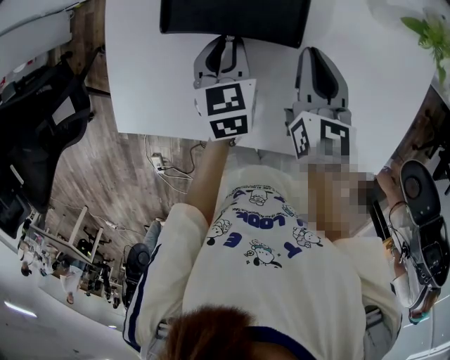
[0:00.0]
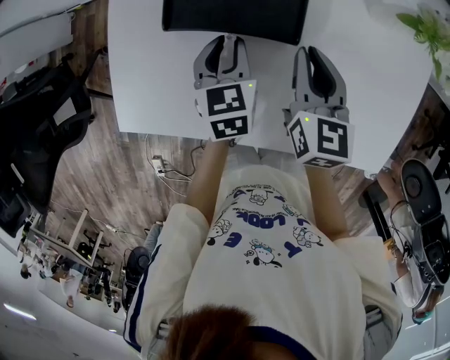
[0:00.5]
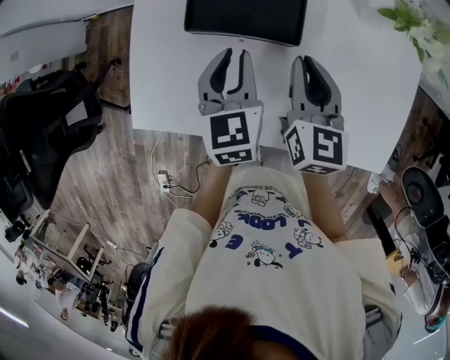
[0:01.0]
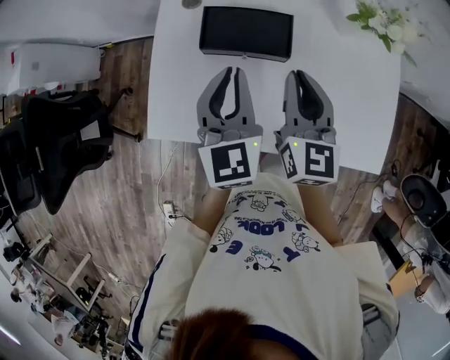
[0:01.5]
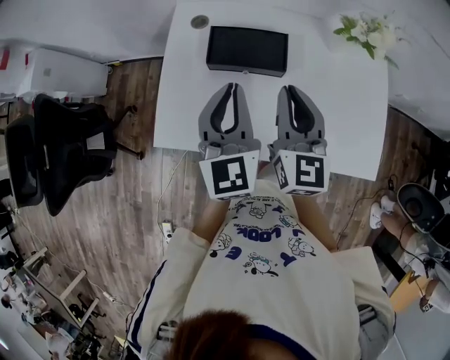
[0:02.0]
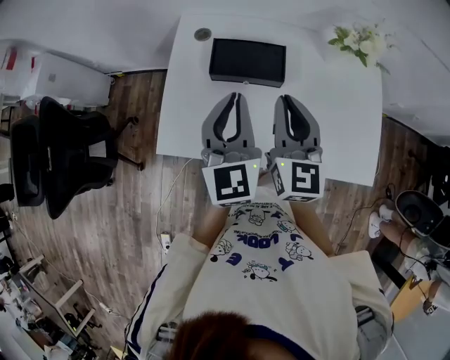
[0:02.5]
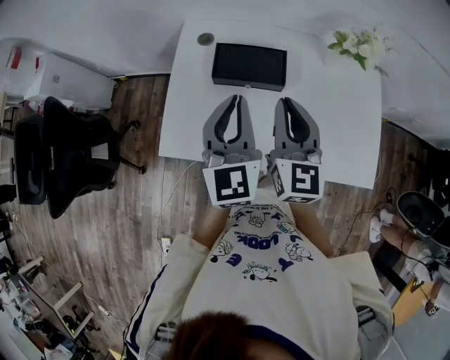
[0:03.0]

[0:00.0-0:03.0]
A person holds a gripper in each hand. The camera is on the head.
0.0 to 1.5 s: The left gripper travels upward by approximately 25 cm, and angles its fingers upward, by roughly 30 degrees. Meanwhile the right gripper goes approximately 20 cm upward, backward and to the left.
1.5 to 3.0 s: The left gripper goes roughly 10 cm upward and backward. The right gripper travels upward by approximately 5 cm.

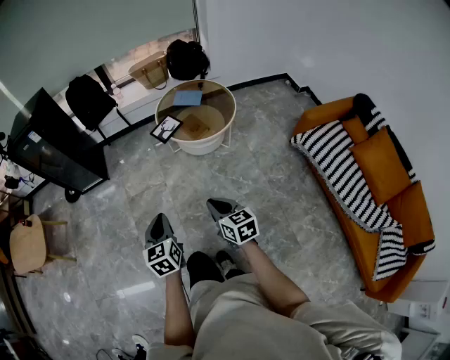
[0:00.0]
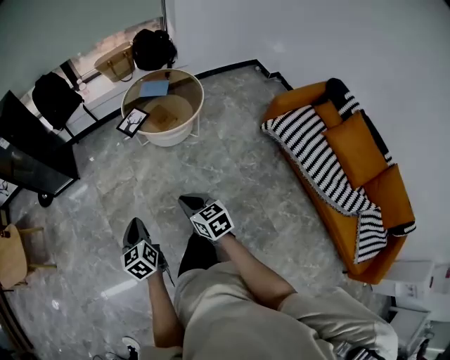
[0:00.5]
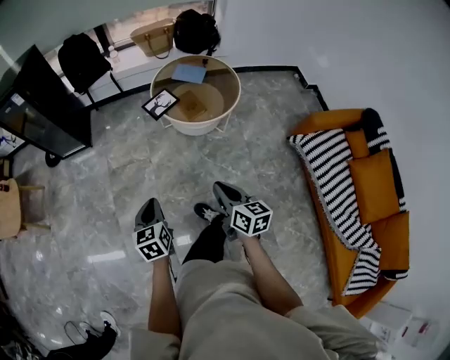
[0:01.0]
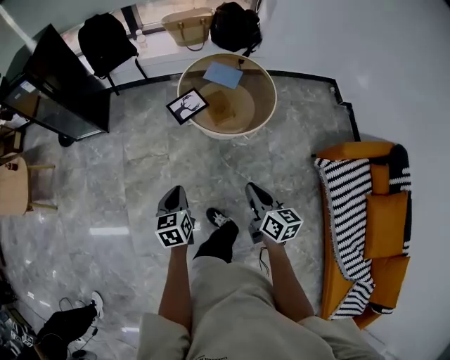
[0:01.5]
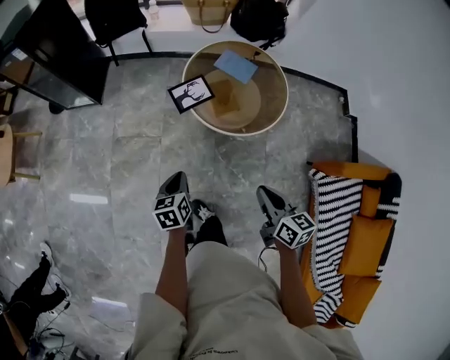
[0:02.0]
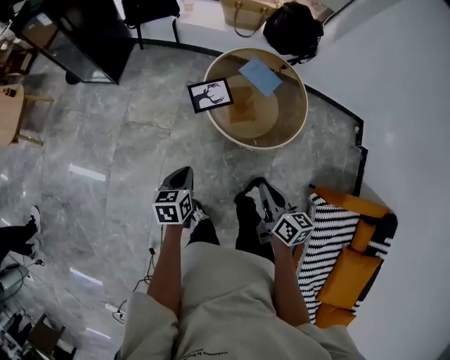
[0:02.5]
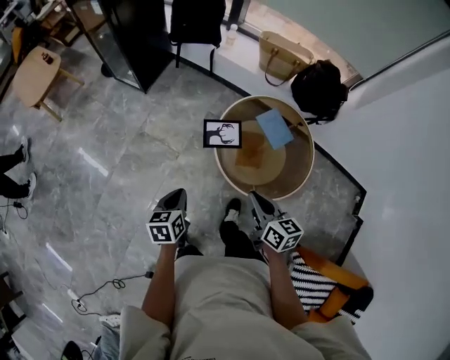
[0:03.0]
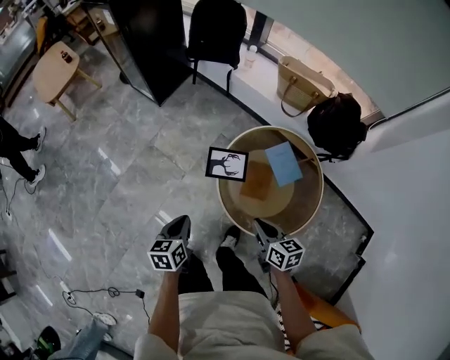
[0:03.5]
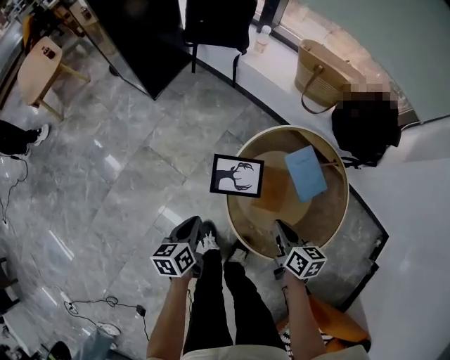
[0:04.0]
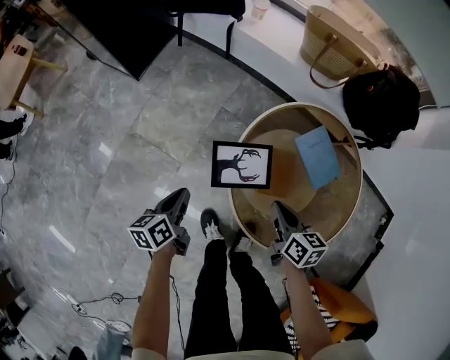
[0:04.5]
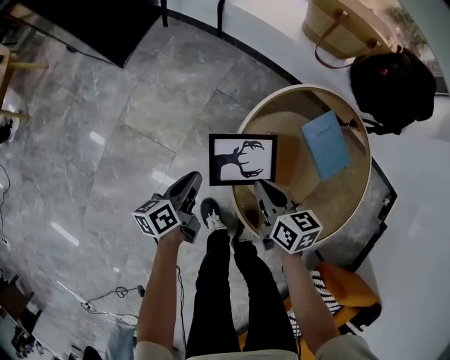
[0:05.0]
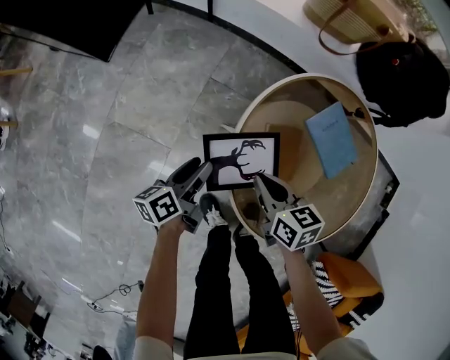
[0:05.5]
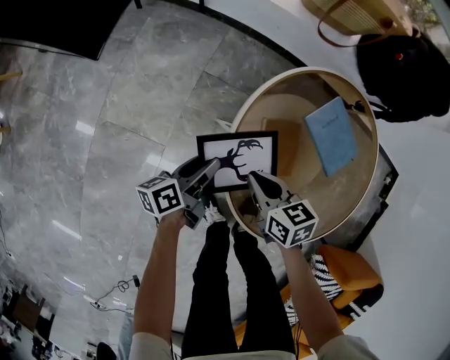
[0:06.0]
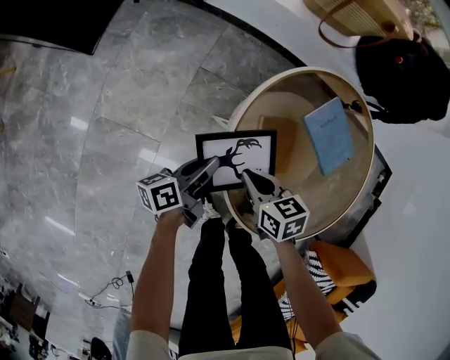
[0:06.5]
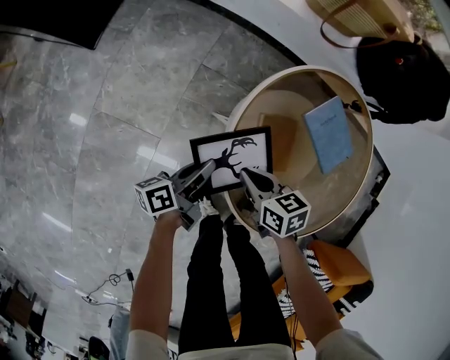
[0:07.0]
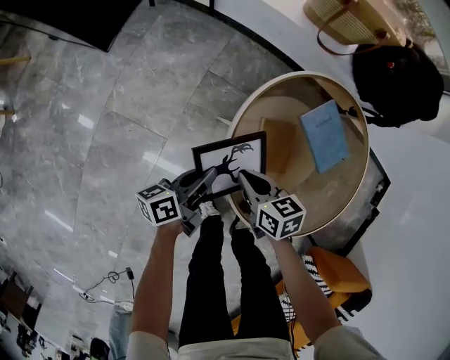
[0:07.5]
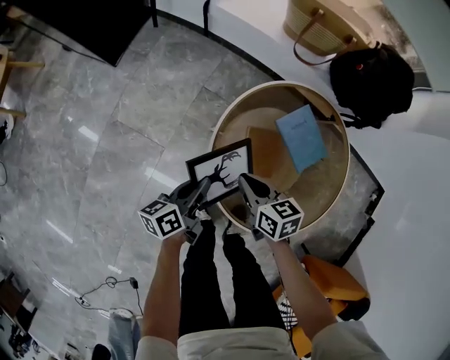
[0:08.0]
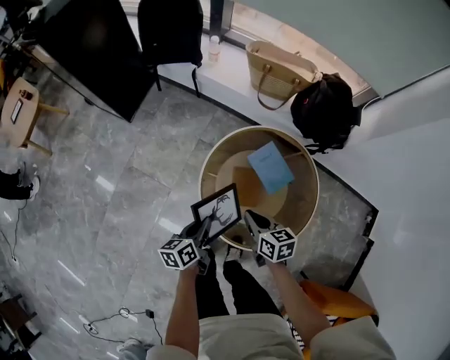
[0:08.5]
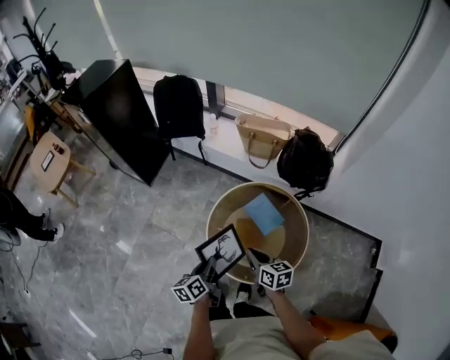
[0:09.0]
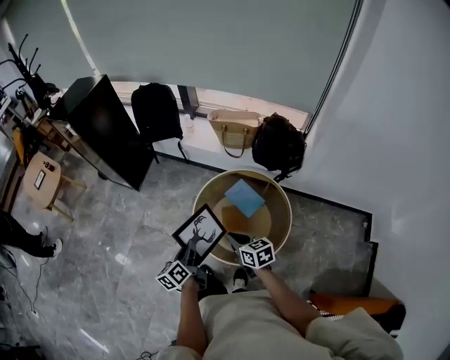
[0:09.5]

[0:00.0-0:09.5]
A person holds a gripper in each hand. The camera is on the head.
0.0 to 2.0 s: The left gripper heads forward and downward, covering roughly 35 cm, and swivels roughly 30 degrees. Meanwhile the right gripper travels forward and to the right by about 35 cm.
2.0 to 4.0 s: The right gripper moves about 50 cm, and changes its angle by about 30 degrees. Meanwhile the left gripper changes place by about 30 cm, and turns by roughly 30 degrees.
4.0 to 5.5 s: The right gripper travels downward, forward and to the left by roughly 25 cm. The left gripper shifts about 25 cm downward and forward, rotates roughly 30 degrees, and opens its fingers.
5.5 to 7.5 s: The left gripper shifts about 5 cm upward, and closes its fingers.
7.5 to 9.5 s: The right gripper heads upward, backward and to the right, covering approximately 50 cm. The left gripper is displaced upward and backward by roughly 50 cm, and changes its angle by roughly 40 degrees.

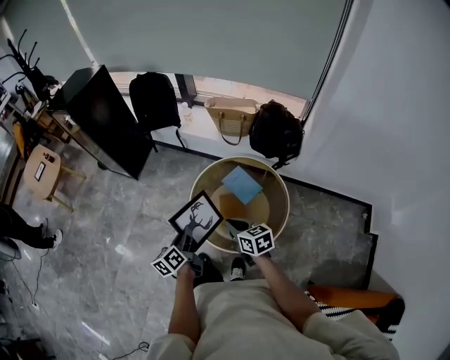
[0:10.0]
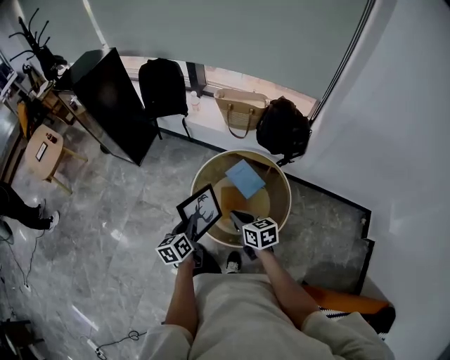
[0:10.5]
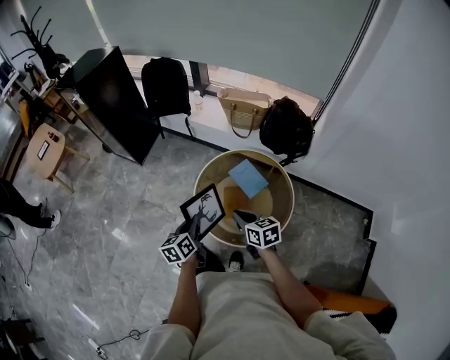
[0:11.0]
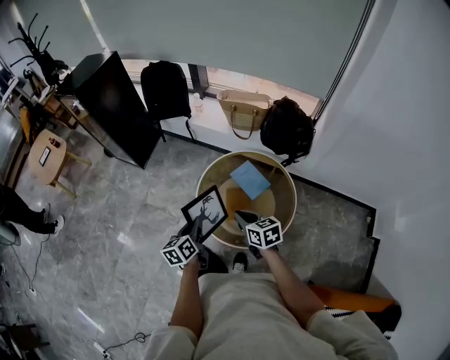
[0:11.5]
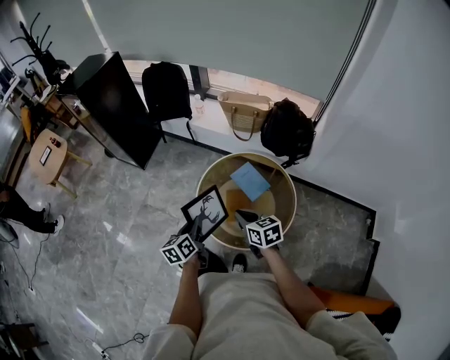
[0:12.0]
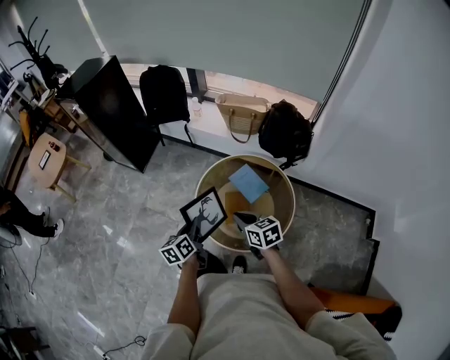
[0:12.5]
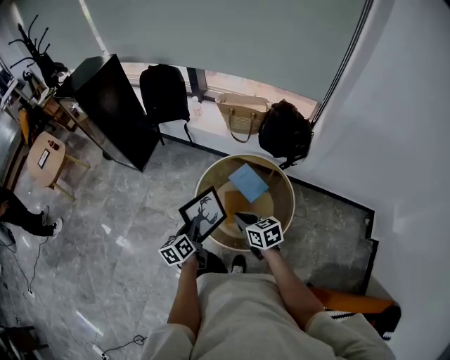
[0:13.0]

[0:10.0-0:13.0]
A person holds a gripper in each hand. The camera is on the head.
10.0 to 11.5 s: The grippers stay close to where they were, moving slightly.
11.5 to 13.0 s: Both grippers stay about where they are.

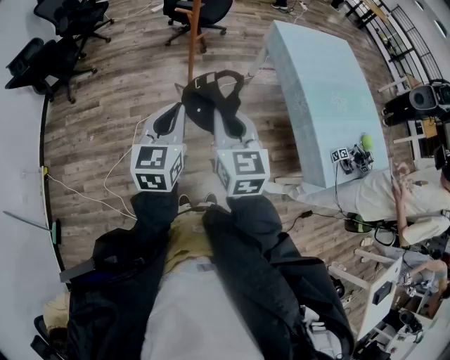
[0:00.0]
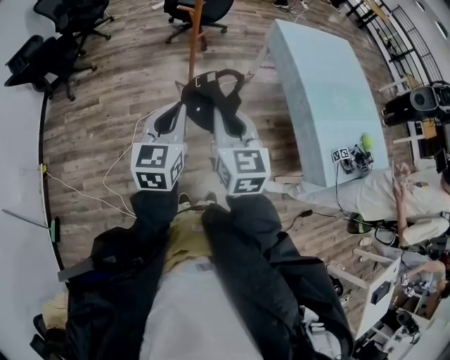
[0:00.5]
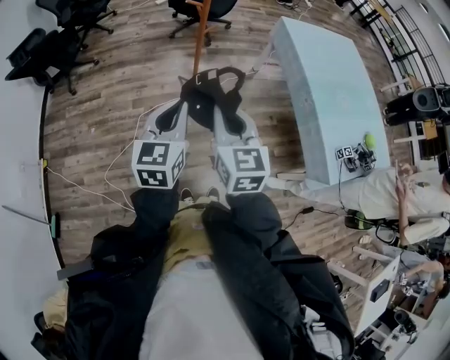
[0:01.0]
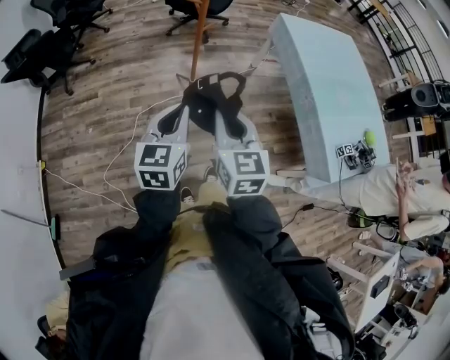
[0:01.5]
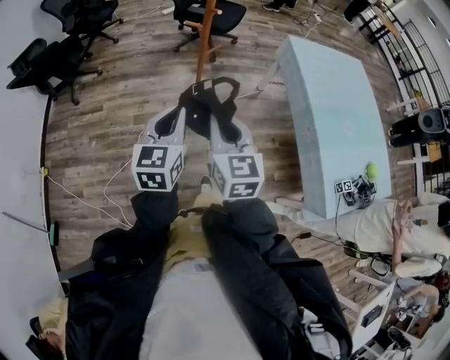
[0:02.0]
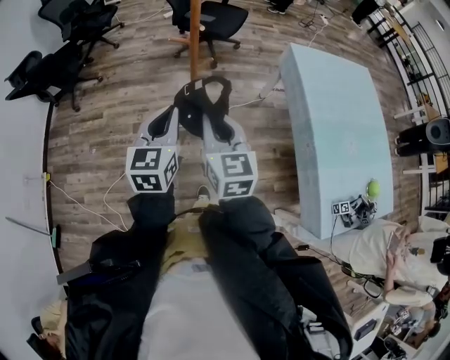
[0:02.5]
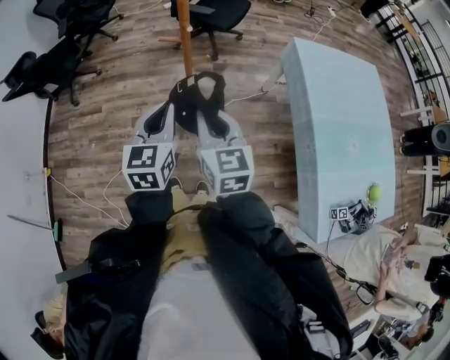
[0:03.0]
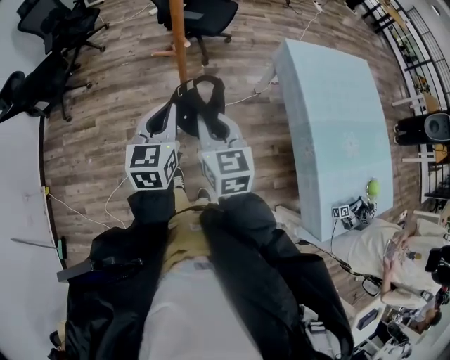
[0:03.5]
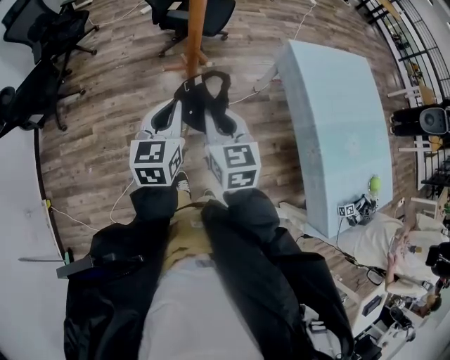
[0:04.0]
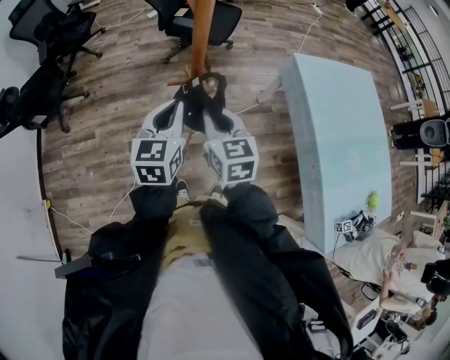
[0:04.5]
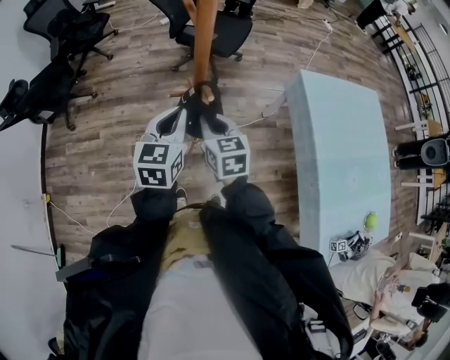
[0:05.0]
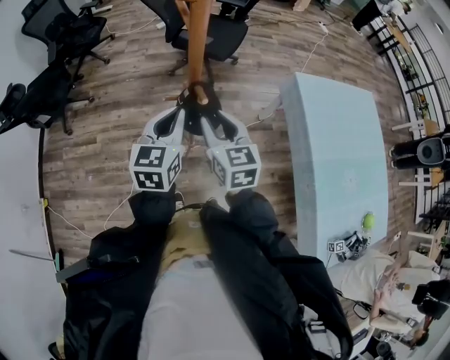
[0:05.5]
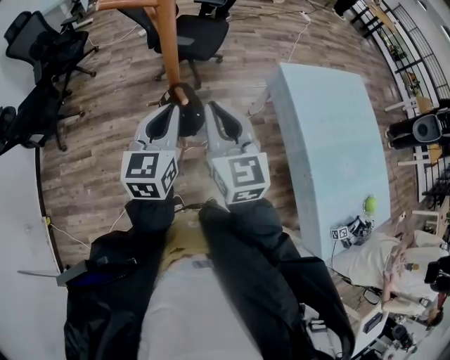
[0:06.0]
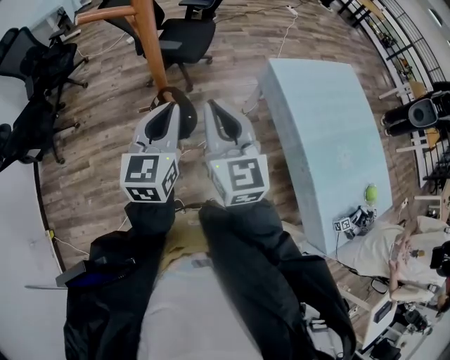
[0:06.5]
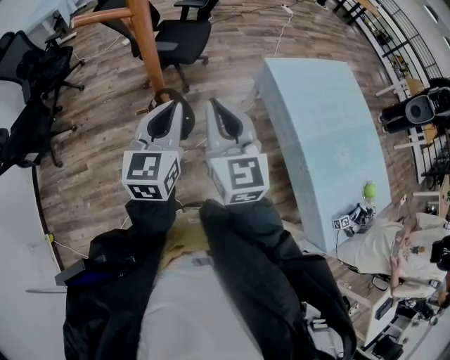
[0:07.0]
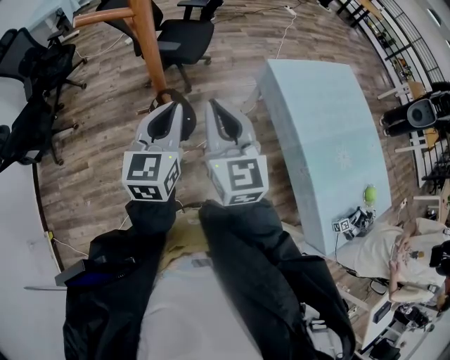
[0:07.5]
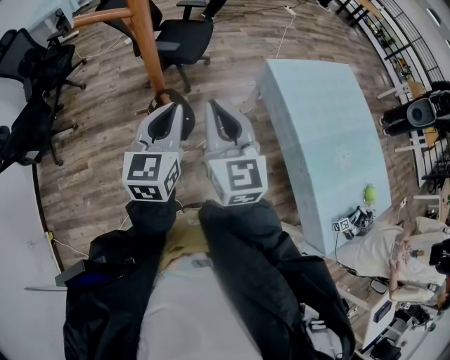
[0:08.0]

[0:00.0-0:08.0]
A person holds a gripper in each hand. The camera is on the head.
0.0 to 2.0 s: The two grippers go roughly 10 cm forward.
2.0 to 4.0 s: The grippers both shift forward by about 25 cm.
4.0 to 6.0 s: The left gripper goes some 10 cm upward and to the right; the right gripper is displaced upward, to the right and forward by some 15 cm, and opens and closes again.
6.0 to 8.0 s: The grippers stay close to where they were, moving slightly.

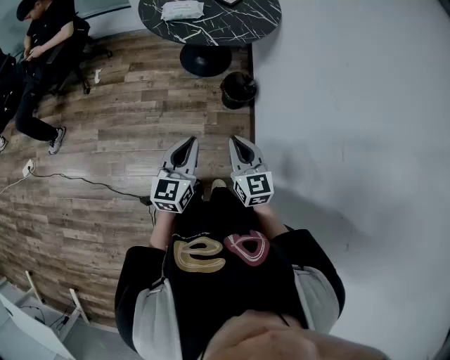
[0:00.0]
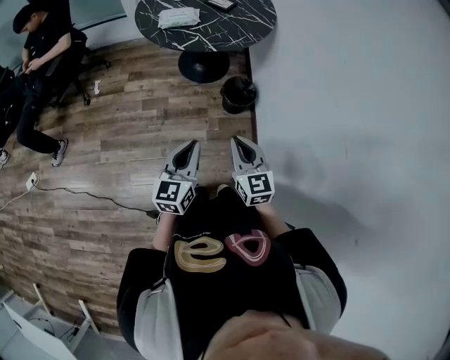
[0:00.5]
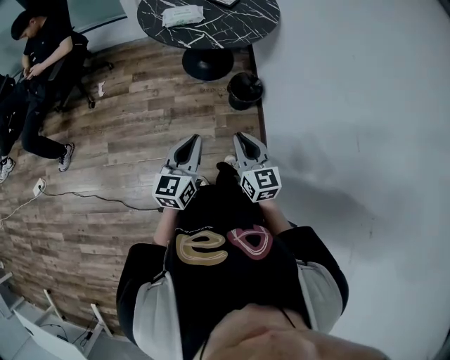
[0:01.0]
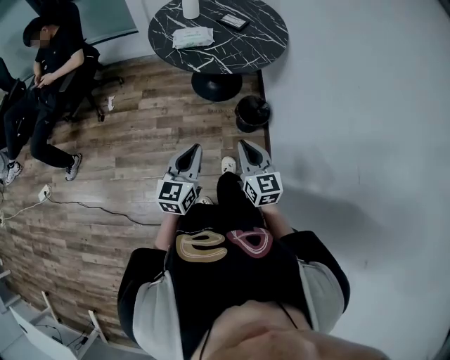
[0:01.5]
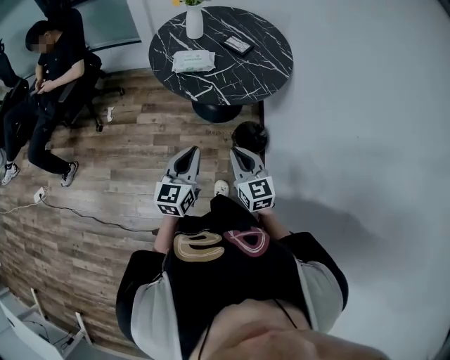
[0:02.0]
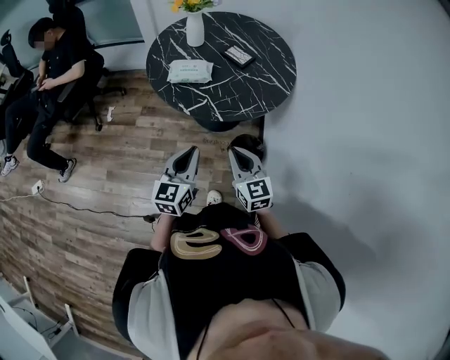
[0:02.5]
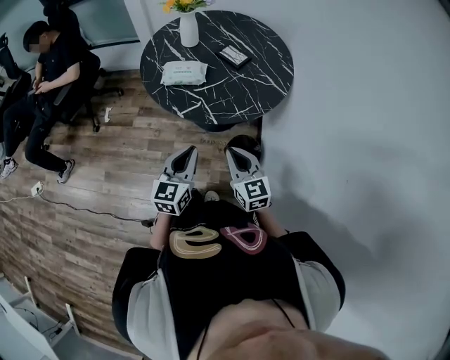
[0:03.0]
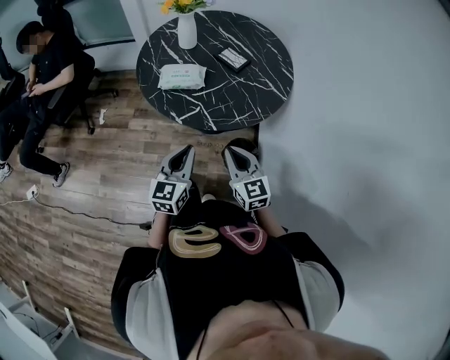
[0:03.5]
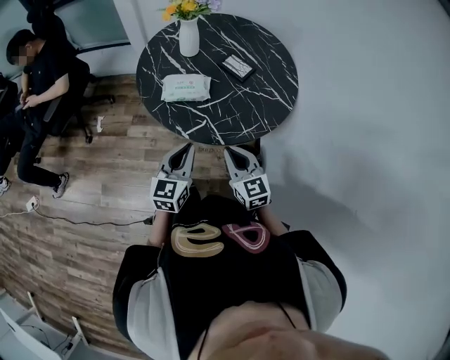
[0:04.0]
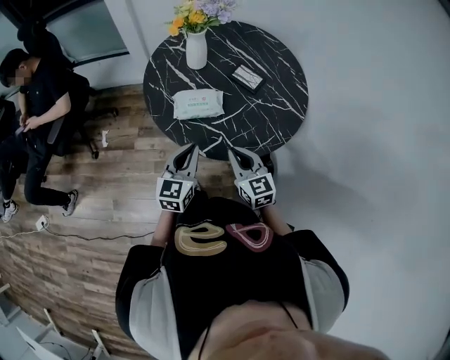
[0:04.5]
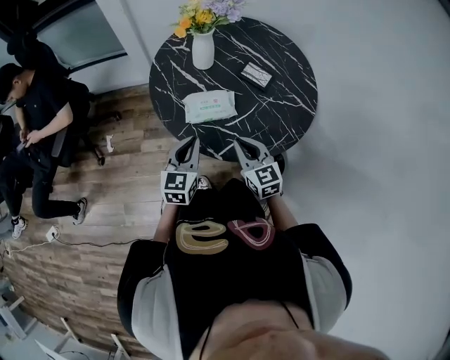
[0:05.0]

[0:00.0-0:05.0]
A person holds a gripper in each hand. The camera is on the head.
0.0 to 2.5 s: Both grippers travel together forward, roughly 30 cm.
2.5 to 5.0 s: The grippers both shift forward and to the left by some 30 cm.
